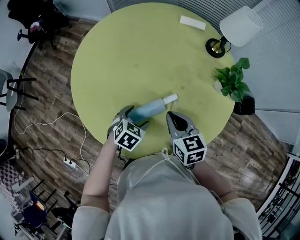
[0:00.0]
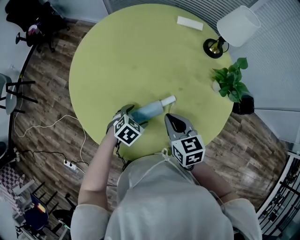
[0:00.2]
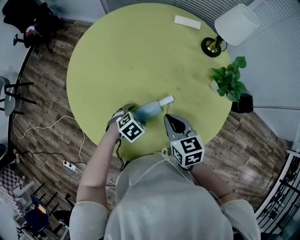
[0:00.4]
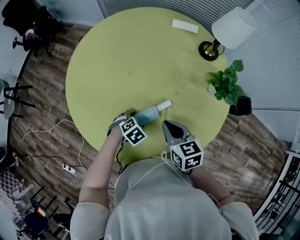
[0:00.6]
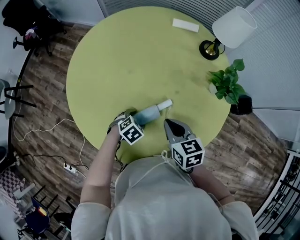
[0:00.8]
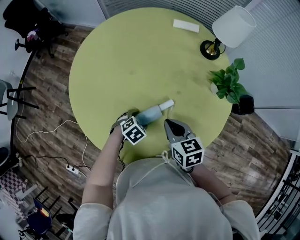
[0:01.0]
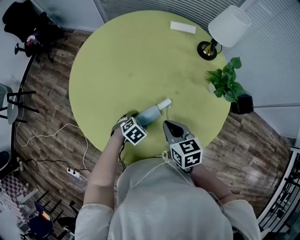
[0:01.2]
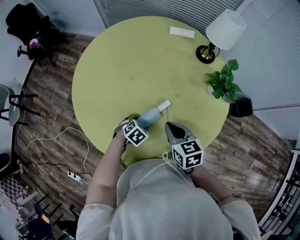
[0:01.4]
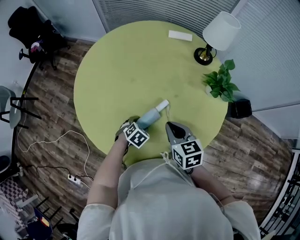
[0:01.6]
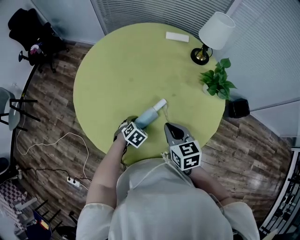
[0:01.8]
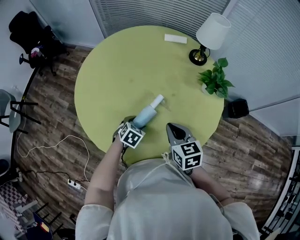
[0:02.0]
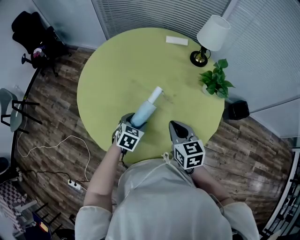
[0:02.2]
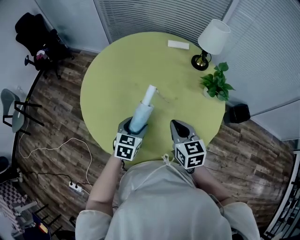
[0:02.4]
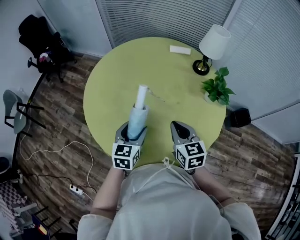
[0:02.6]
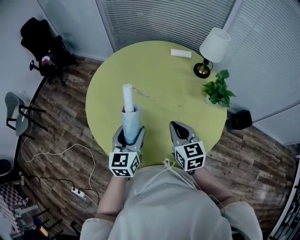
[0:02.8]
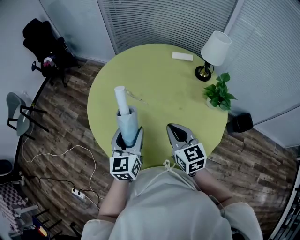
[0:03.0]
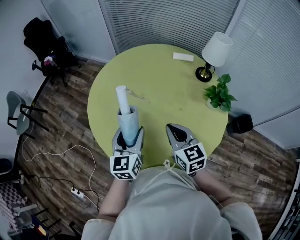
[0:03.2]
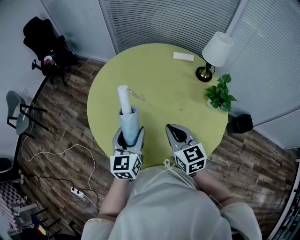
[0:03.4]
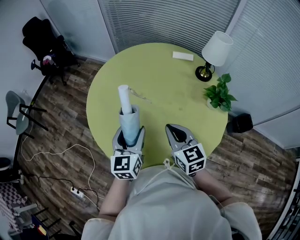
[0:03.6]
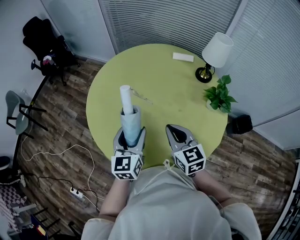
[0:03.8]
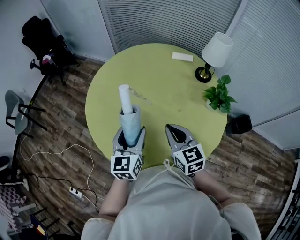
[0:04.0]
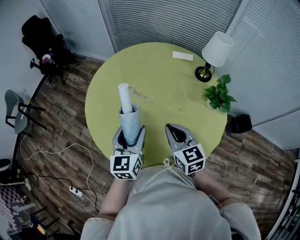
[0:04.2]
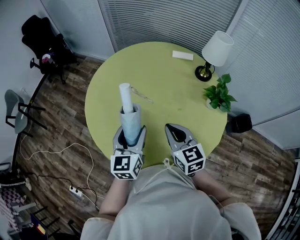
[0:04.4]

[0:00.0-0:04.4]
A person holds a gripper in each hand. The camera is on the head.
0:00.0 to 0:01.4: The left gripper shifts about 5 cm downward.
0:01.4 to 0:03.0: The left gripper is displaced upward by roughly 30 cm, and points its fingers about 60 degrees further upward. The right gripper goes about 10 cm upward, and changes its angle by about 20 degrees.
0:03.0 to 0:04.4: There are only small adjustments of the grippers.

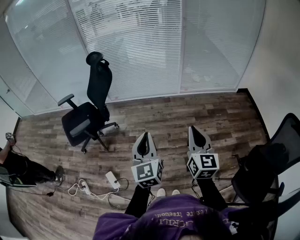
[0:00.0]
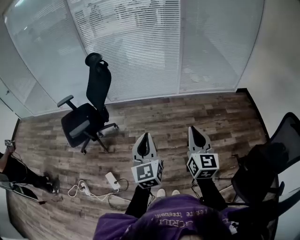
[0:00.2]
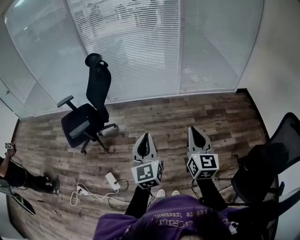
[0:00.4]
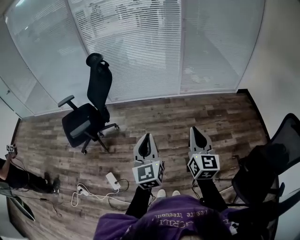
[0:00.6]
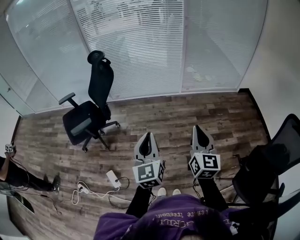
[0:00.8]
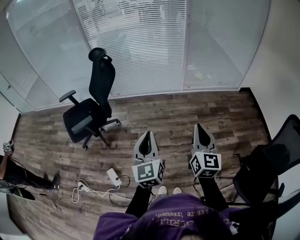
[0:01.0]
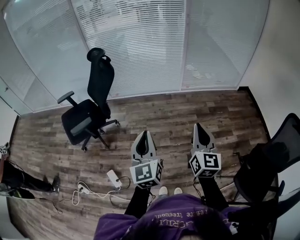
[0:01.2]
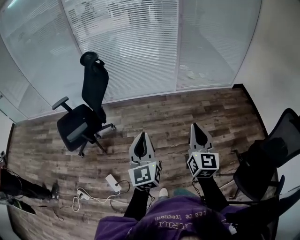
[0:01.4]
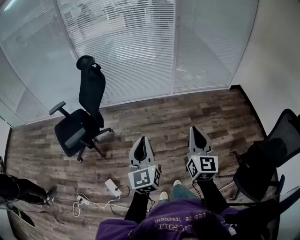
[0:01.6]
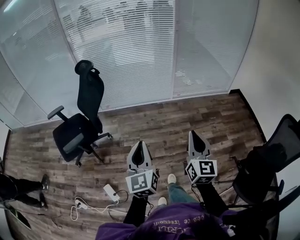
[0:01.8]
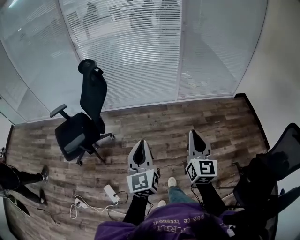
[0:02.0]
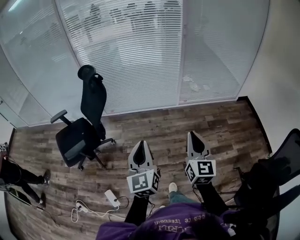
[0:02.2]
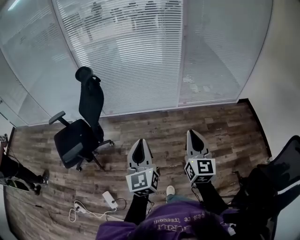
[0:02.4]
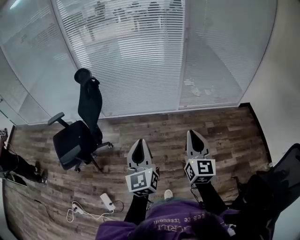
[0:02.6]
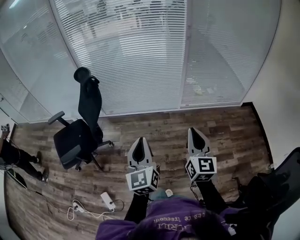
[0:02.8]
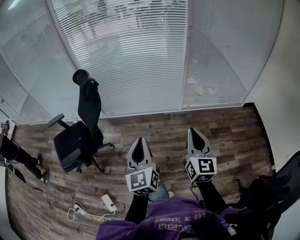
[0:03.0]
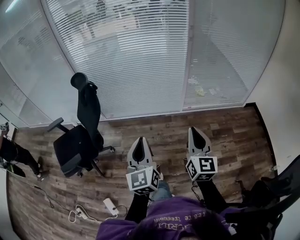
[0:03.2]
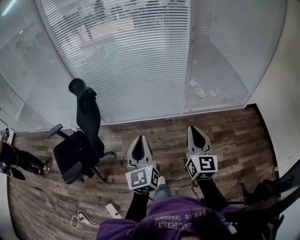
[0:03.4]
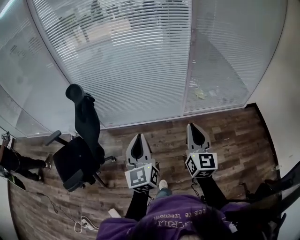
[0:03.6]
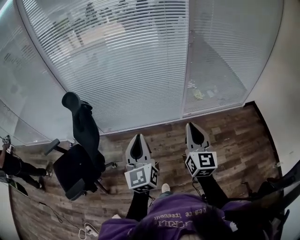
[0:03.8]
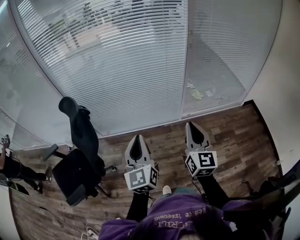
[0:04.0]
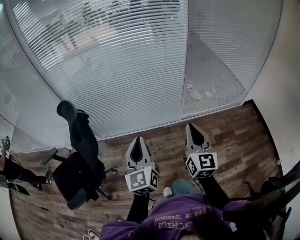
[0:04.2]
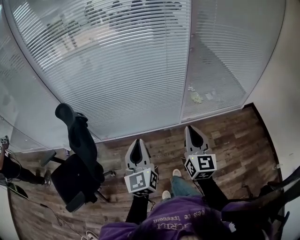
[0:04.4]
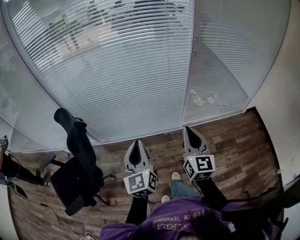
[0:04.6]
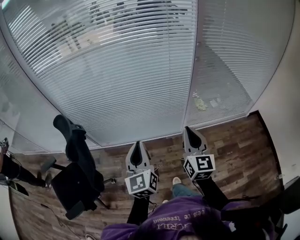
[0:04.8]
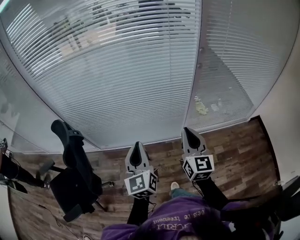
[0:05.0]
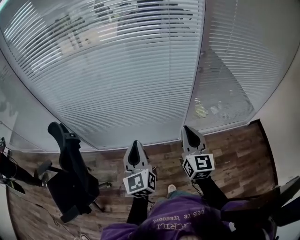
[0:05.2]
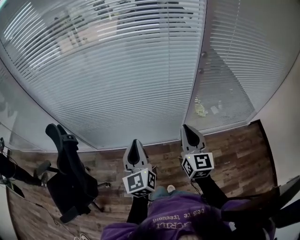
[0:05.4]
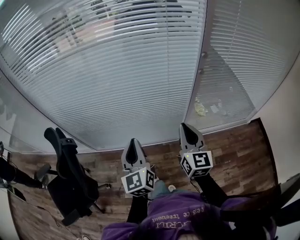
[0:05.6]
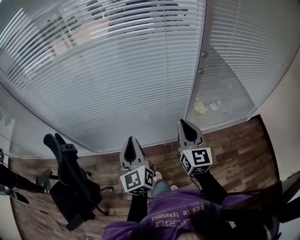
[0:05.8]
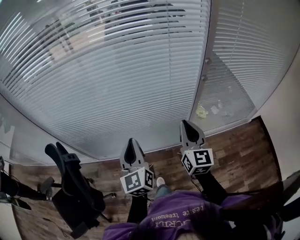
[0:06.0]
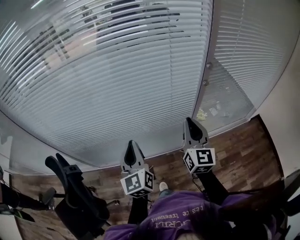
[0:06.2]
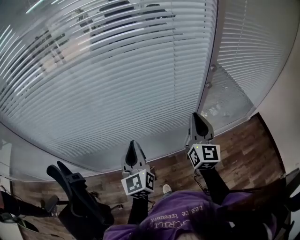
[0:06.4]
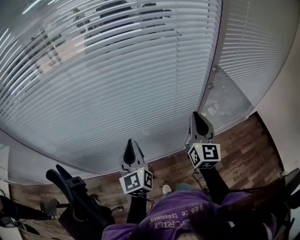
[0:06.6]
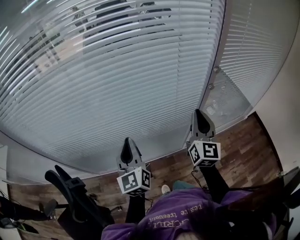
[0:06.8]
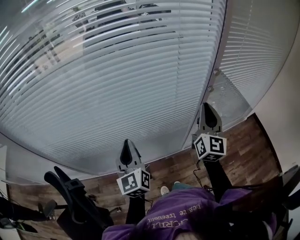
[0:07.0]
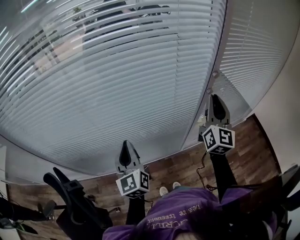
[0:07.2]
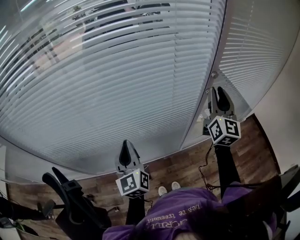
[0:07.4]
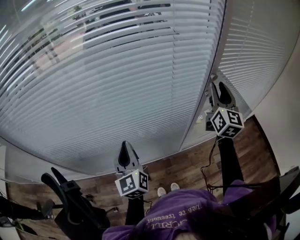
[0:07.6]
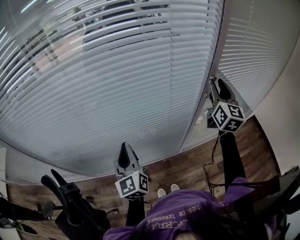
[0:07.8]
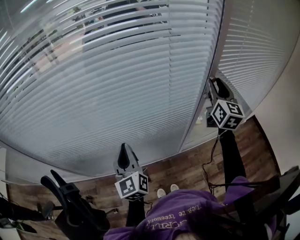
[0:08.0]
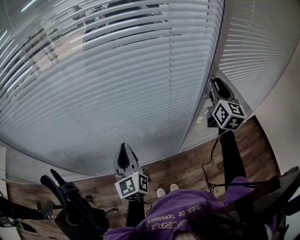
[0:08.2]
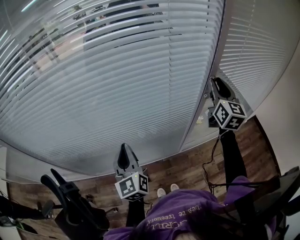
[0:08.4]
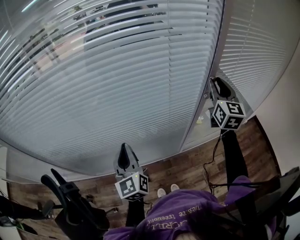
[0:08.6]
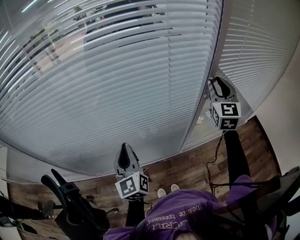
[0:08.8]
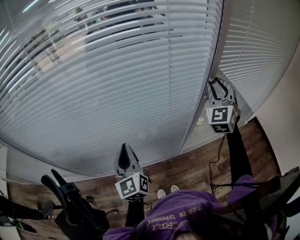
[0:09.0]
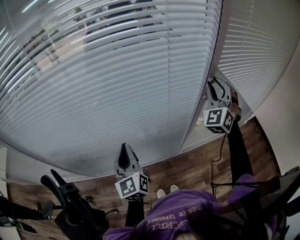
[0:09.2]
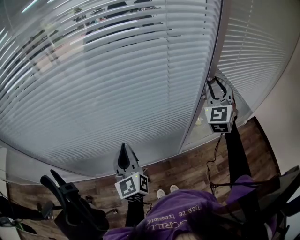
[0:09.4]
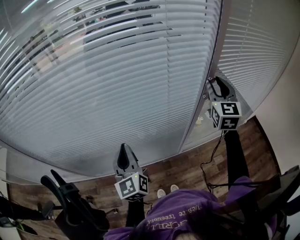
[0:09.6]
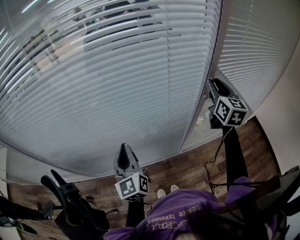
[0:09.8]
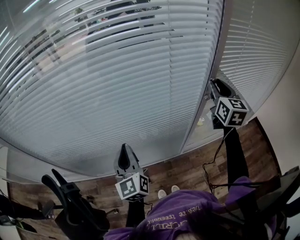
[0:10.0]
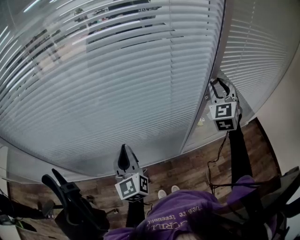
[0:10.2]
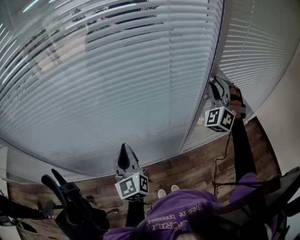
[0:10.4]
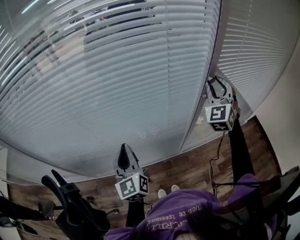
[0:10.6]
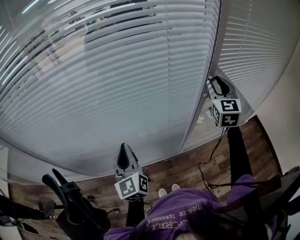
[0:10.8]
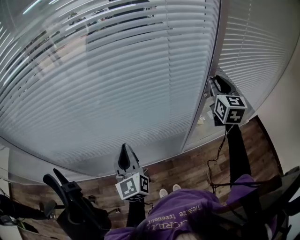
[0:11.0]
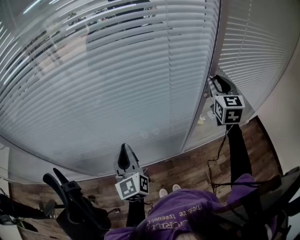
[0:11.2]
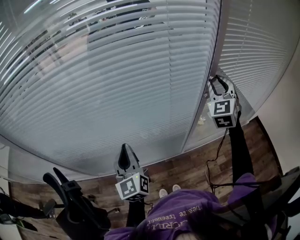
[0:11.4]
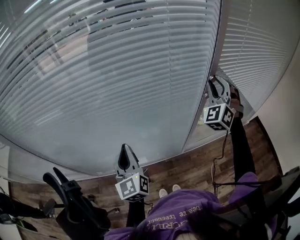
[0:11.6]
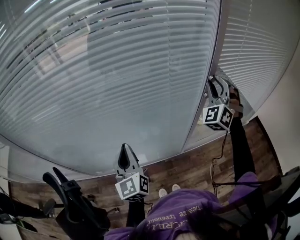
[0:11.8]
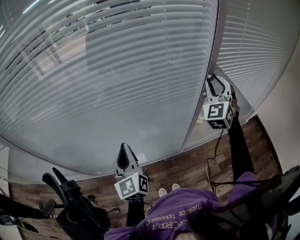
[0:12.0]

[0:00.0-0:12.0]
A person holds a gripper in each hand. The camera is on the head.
0:00.0 to 0:01.6: The left gripper moves about 5 cm.
0:01.6 to 0:03.0: Both grippers travel together forward, roughly 25 cm.
0:03.0 to 0:04.4: The grippers both shift forward by roughly 30 cm.
0:04.4 to 0:06.0: The grippers both shift forward by some 30 cm.
0:06.0 to 0:07.6: The left gripper goes some 10 cm forward. Meanwhile the right gripper is displaced forward, to the right and upward by roughly 25 cm, changes its angle by some 20 degrees, and opens up.
0:07.6 to 0:09.0: The right gripper twists some 50 degrees counterclockwise, seen from behind.
0:09.0 to 0:10.4: The right gripper changes its angle by approximately 30 degrees.
0:10.4 to 0:12.0: The right gripper swivels roughly 20 degrees.

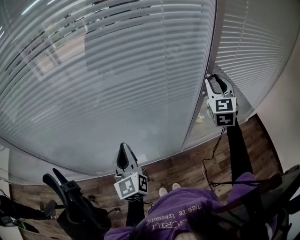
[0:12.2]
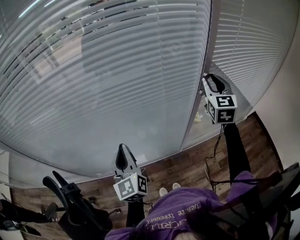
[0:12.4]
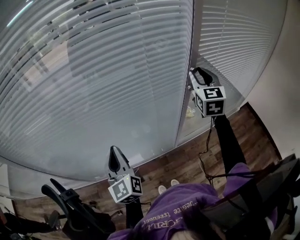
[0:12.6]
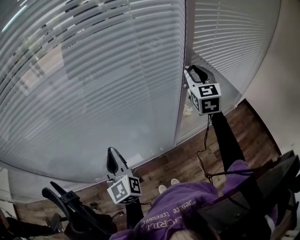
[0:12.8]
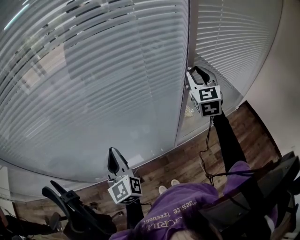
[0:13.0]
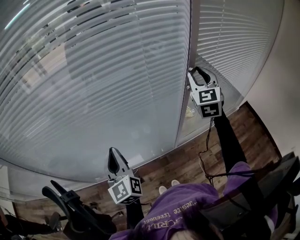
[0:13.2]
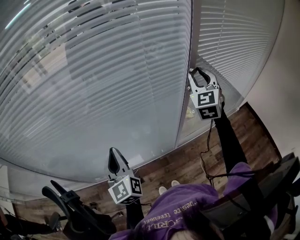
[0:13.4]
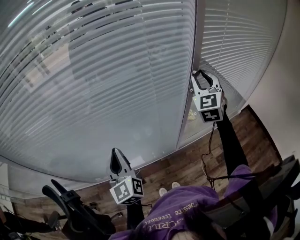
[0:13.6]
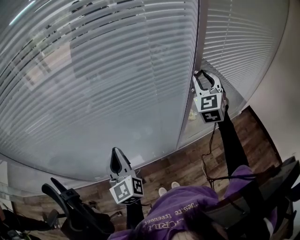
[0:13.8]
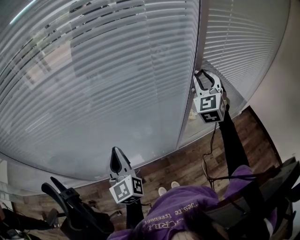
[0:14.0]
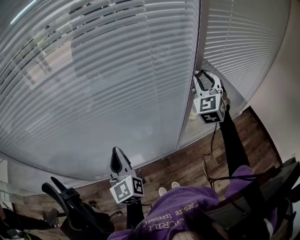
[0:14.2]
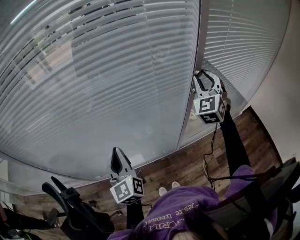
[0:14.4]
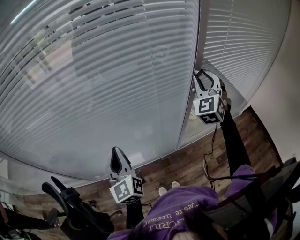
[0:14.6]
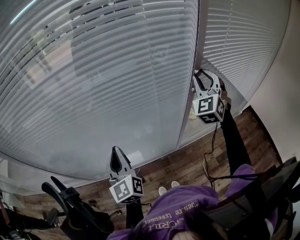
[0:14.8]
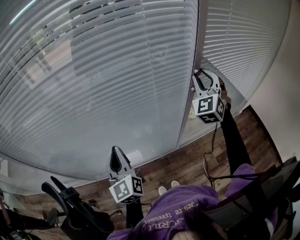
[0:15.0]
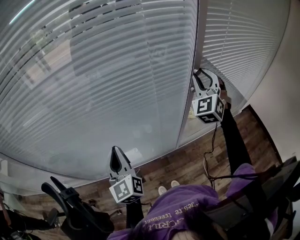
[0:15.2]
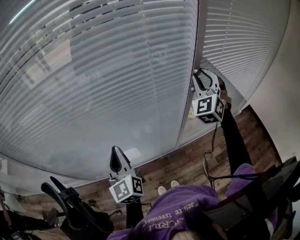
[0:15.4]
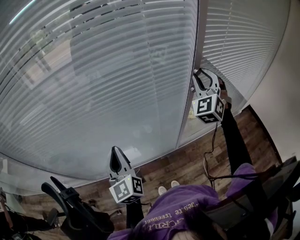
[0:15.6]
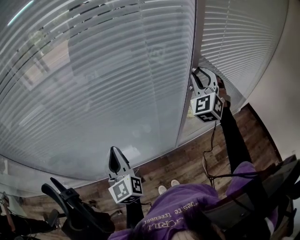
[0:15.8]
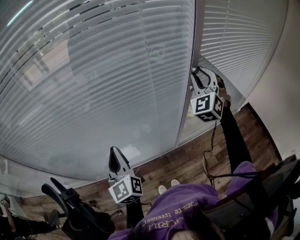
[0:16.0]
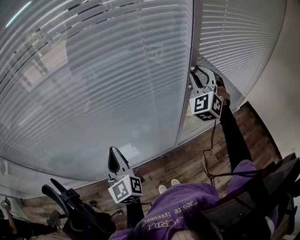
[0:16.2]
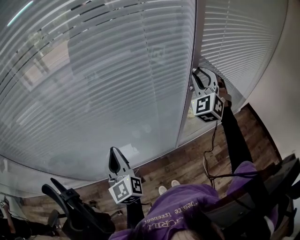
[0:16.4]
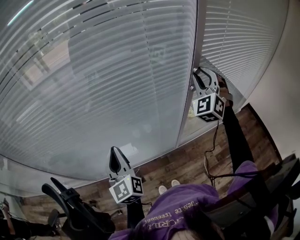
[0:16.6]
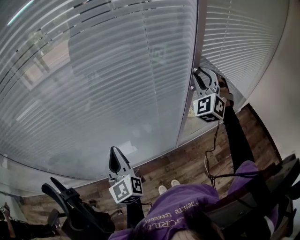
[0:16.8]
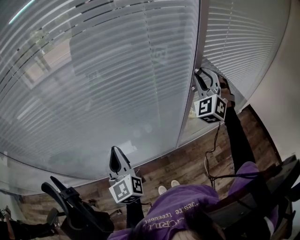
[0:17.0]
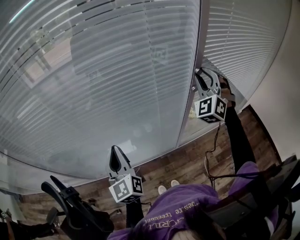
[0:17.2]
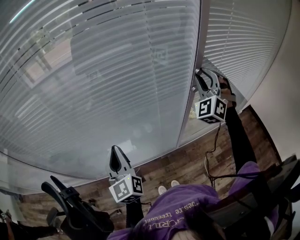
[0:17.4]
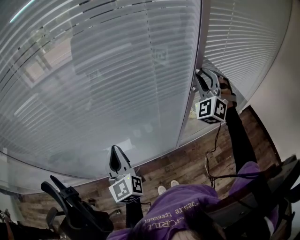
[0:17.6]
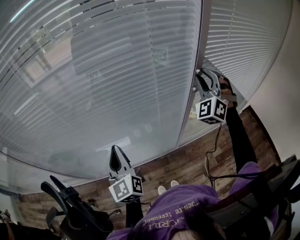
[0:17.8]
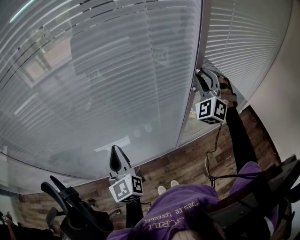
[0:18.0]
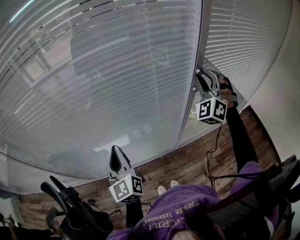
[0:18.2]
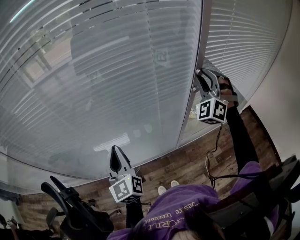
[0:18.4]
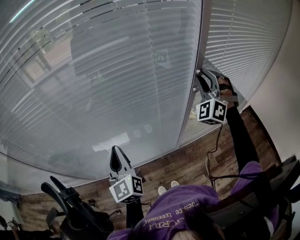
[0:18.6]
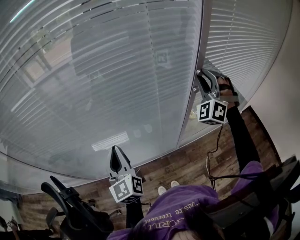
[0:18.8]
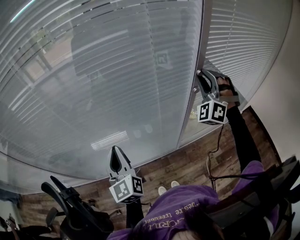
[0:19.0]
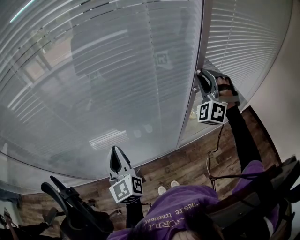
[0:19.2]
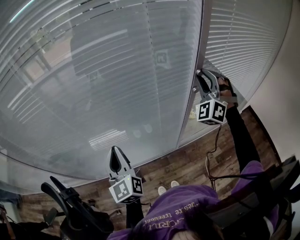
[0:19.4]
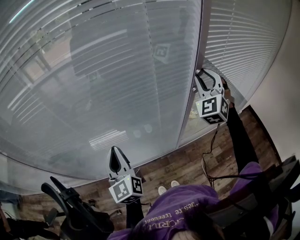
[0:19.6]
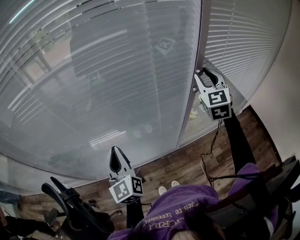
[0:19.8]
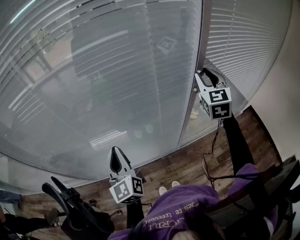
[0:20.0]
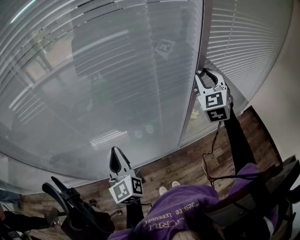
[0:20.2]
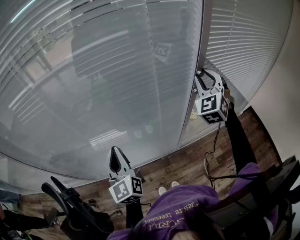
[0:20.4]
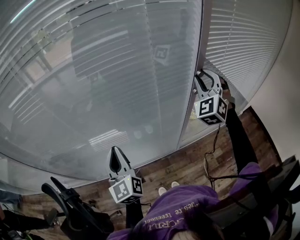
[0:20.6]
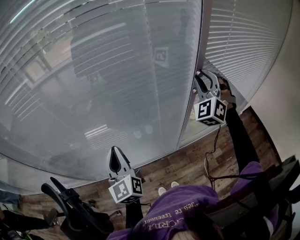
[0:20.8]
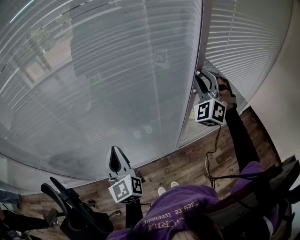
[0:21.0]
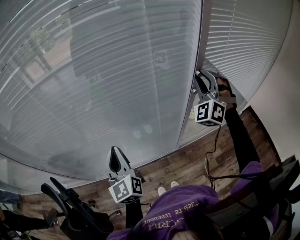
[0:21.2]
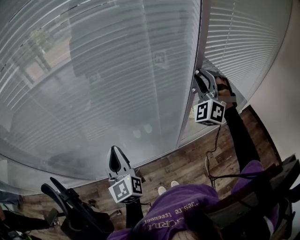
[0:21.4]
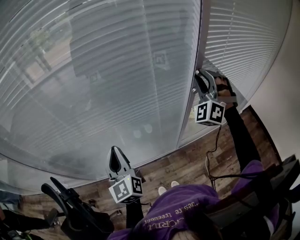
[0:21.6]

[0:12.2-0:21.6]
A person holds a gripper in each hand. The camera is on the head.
0:12.2 to 0:13.8: There are only small adjustments of the grippers.
0:13.8 to 0:15.4: There are only small adjustments of the grippers.
0:15.4 to 0:17.0: There are only small adjustments of the grippers.
0:17.0 to 0:18.4: There are only small adjustments of the grippers.
0:18.4 to 0:20.0: The right gripper twists approximately 50 degrees clockwise, seen from behind.
0:20.0 to 0:21.6: The right gripper rolls counterclockwise, seen from behind, by about 50 degrees.
